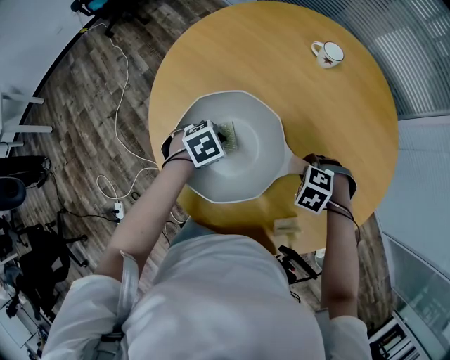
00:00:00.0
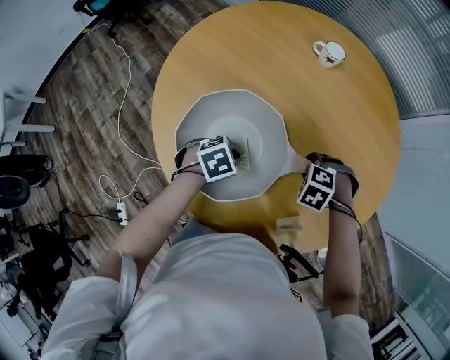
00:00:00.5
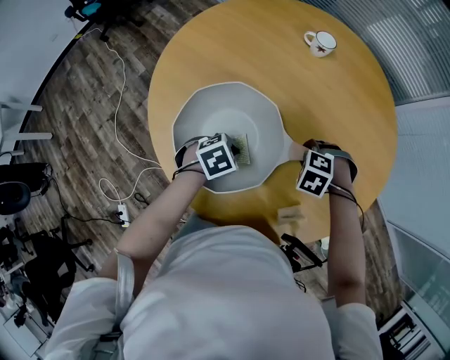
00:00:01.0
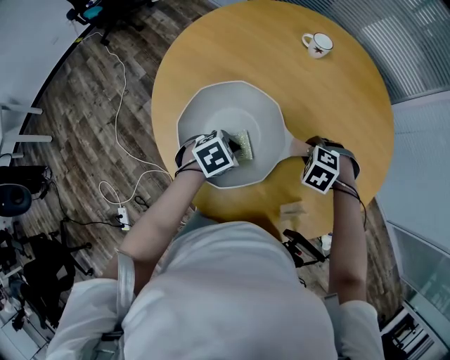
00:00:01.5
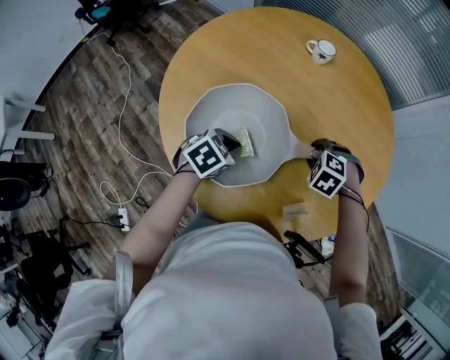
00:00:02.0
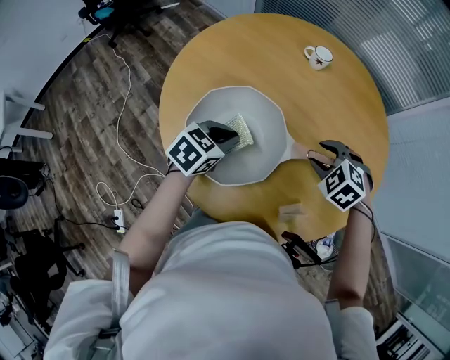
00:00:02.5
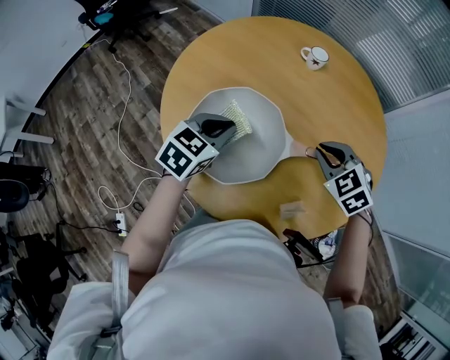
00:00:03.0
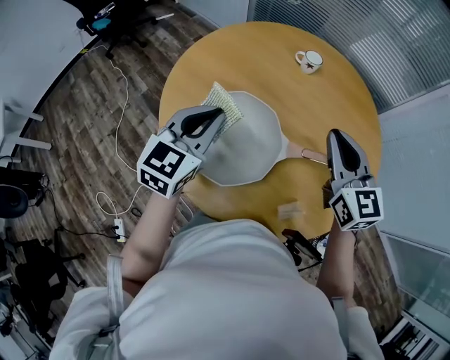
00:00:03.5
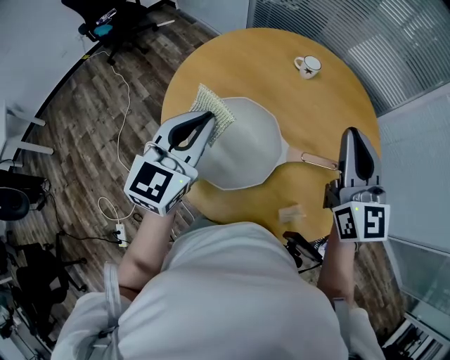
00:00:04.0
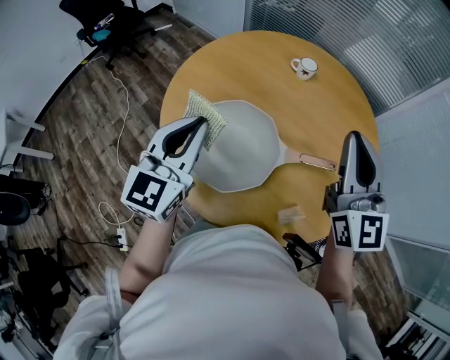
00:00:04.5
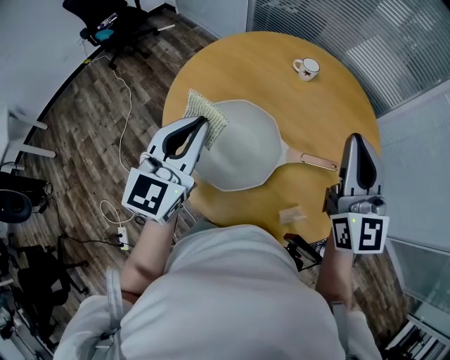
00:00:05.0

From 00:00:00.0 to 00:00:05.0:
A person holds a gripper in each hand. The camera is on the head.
From 00:00:00.0 to 00:00:02.5: Both grippers move upward, roughly 10 cm. The right gripper swivels approximately 20 degrees, and opens its fingers; the left gripper changes its angle by some 30 degrees.
From 00:00:02.5 to 00:00:05.0: The grippers both shift upward by about 25 cm. The left gripper tilts its fingers some 40 degrees upward. Meanwhile the right gripper points its fingers approximately 70 degrees further upward, and closes its fingers.

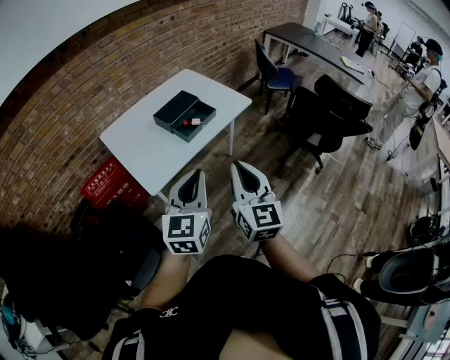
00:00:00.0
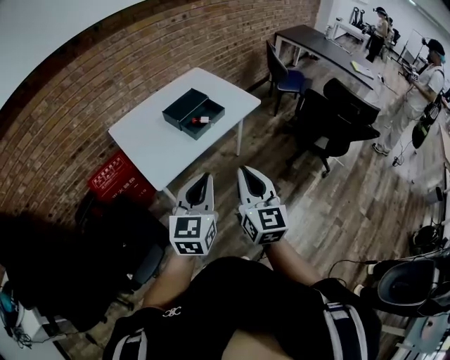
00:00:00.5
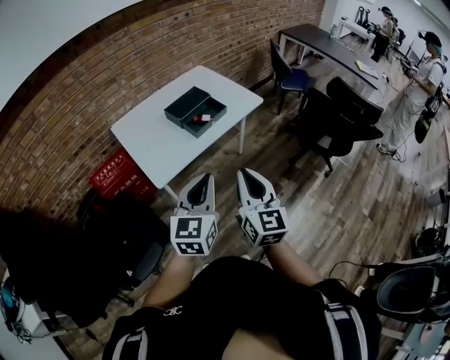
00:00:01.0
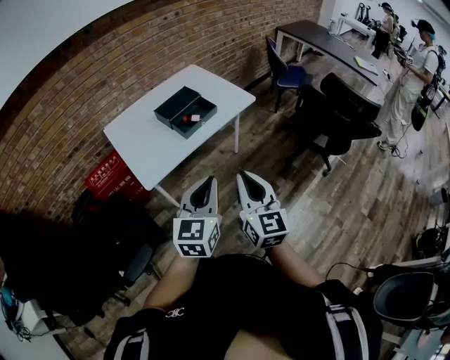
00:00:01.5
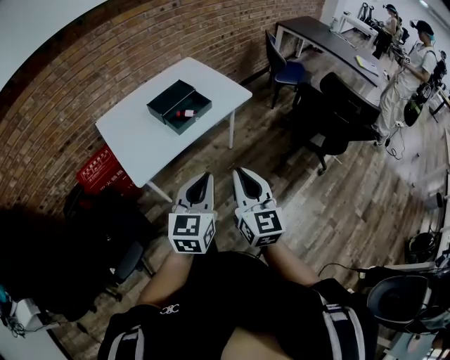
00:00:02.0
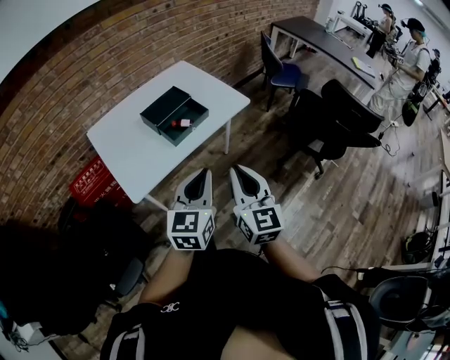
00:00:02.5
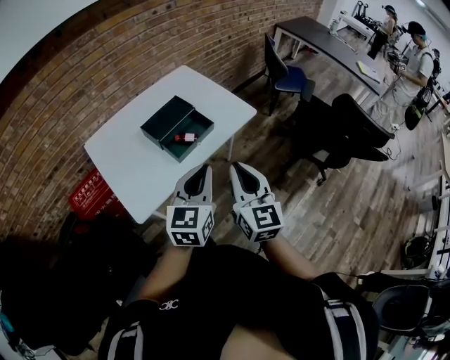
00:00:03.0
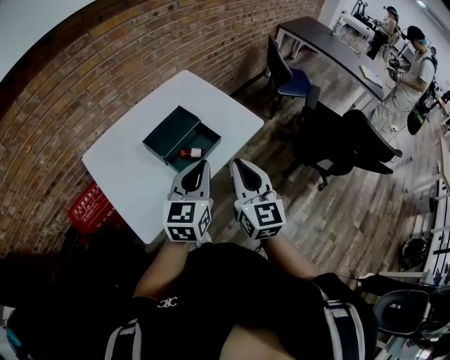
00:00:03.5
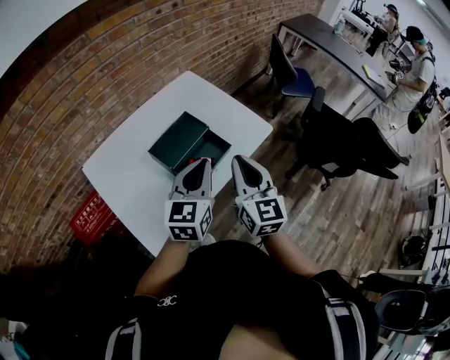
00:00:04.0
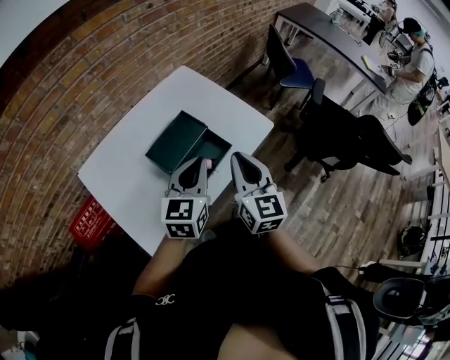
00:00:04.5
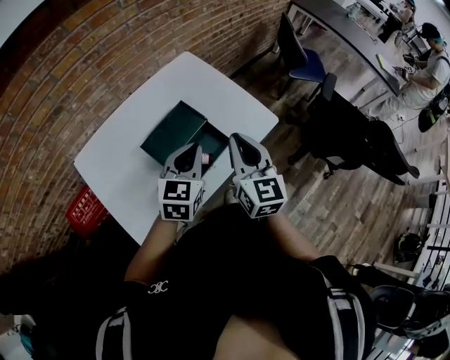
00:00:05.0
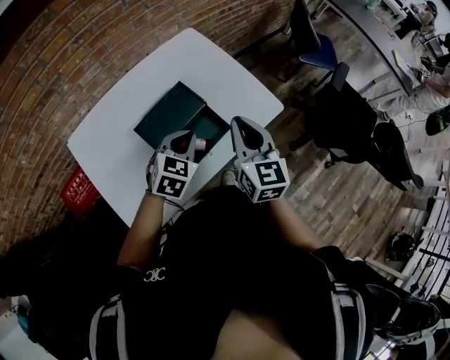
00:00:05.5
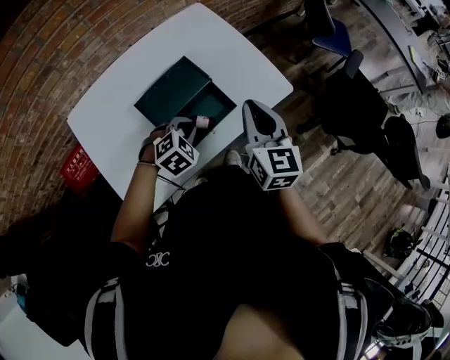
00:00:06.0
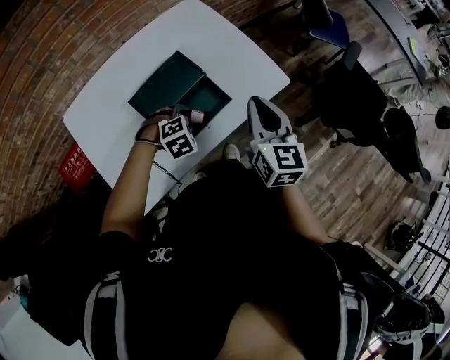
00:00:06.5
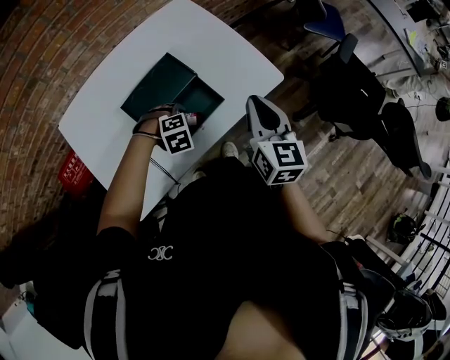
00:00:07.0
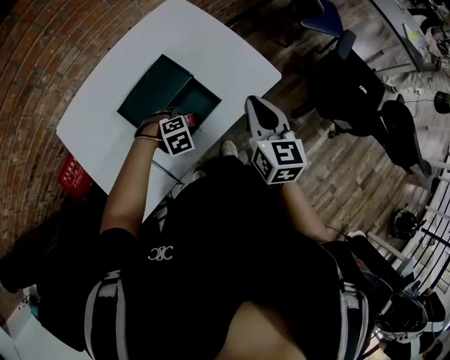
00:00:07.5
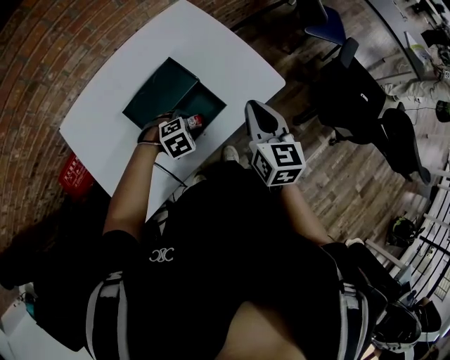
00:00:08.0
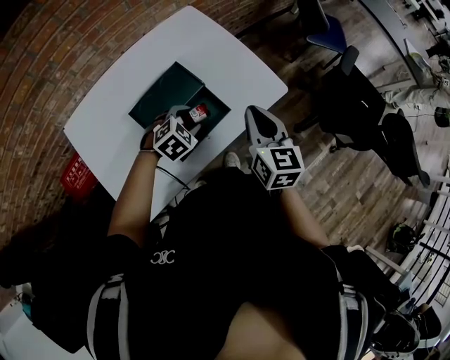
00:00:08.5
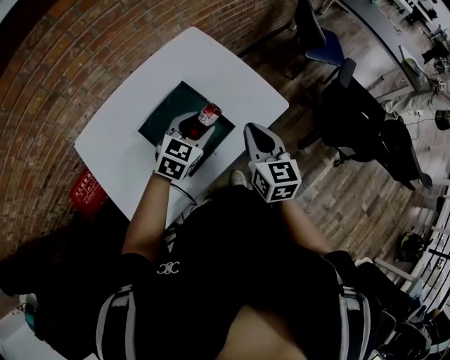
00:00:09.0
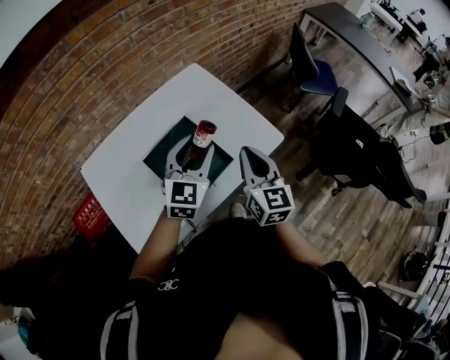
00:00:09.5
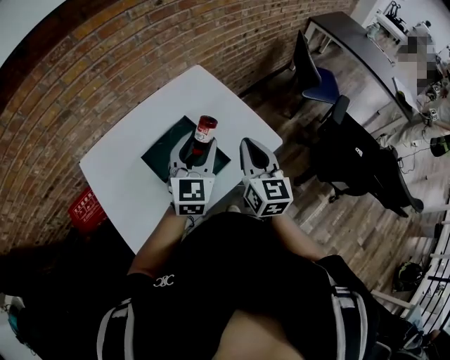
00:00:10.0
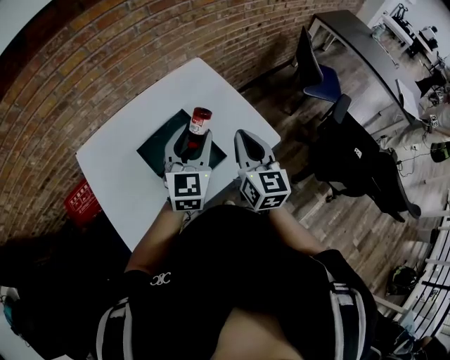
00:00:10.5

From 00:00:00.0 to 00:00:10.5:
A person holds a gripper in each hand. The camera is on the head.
From 00:00:00.0 to 00:00:02.0: The two grippers go some 10 cm to the right and downward.
From 00:00:02.0 to 00:00:04.0: Both grippers move forward, roughly 35 cm.
From 00:00:04.0 to 00:00:06.5: The right gripper goes some 15 cm forward, downward and to the right. The left gripper goes some 25 cm downward, points its fingers some 60 degrees further downward, and opens.
From 00:00:06.5 to 00:00:08.5: The left gripper moves about 5 cm downward and comes back, and swivels approximately 20 degrees.
From 00:00:08.5 to 00:00:10.5: The left gripper travels upward by about 20 cm, and points its fingers some 50 degrees further upward. Meanwhile the right gripper moves upward, roughly 5 cm.

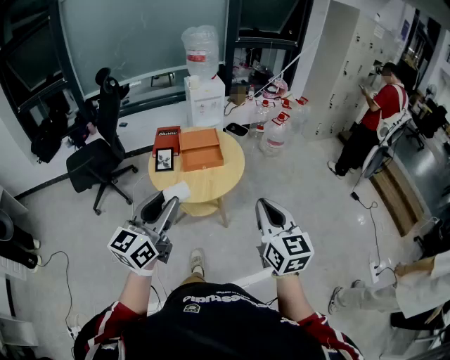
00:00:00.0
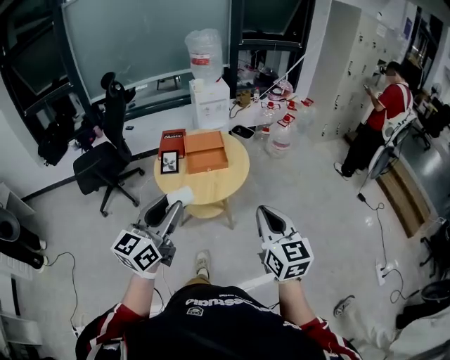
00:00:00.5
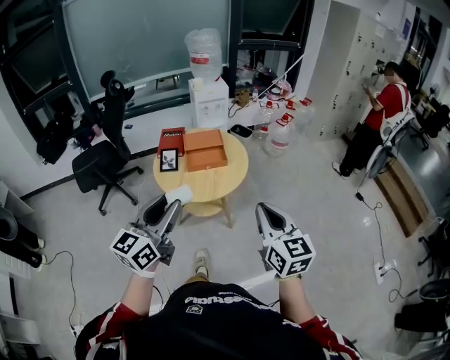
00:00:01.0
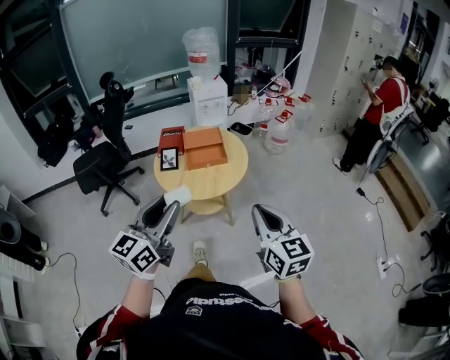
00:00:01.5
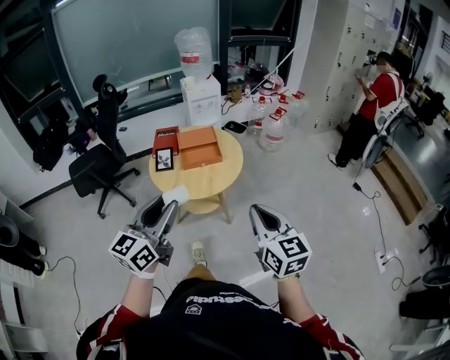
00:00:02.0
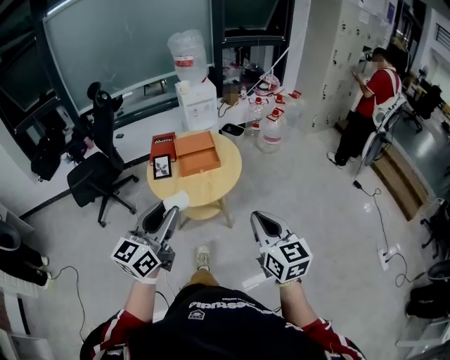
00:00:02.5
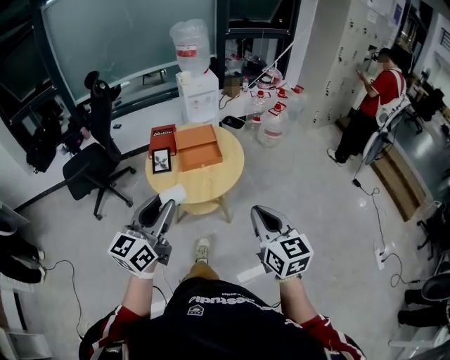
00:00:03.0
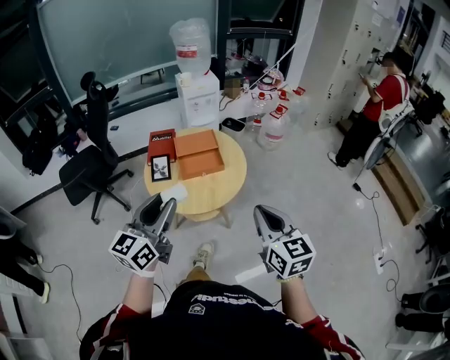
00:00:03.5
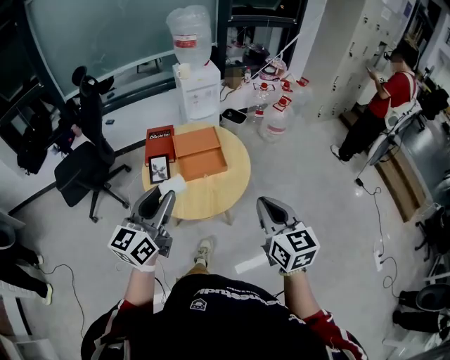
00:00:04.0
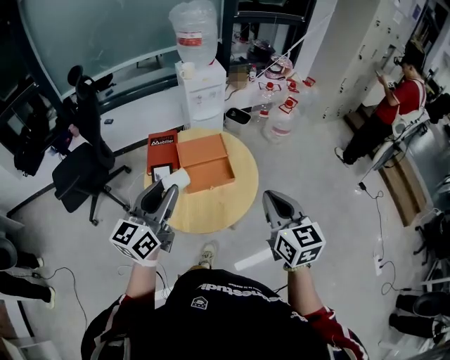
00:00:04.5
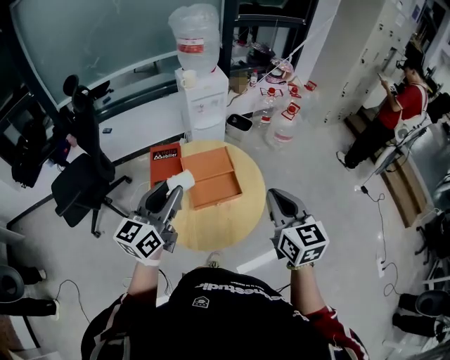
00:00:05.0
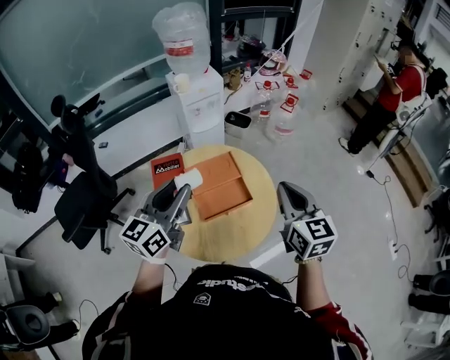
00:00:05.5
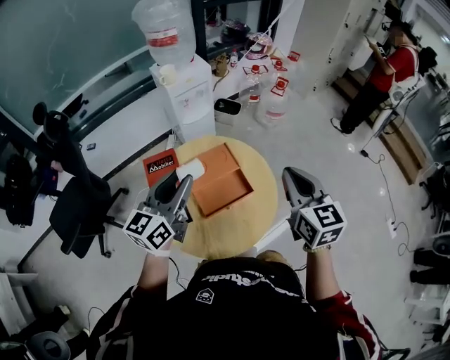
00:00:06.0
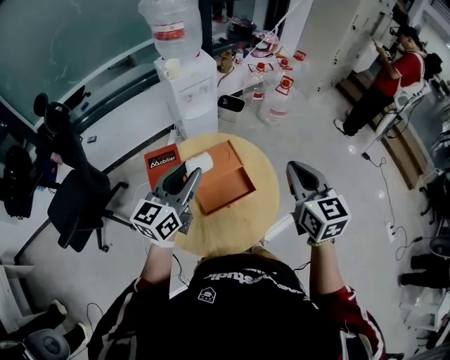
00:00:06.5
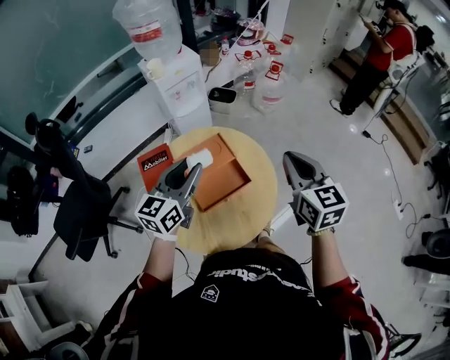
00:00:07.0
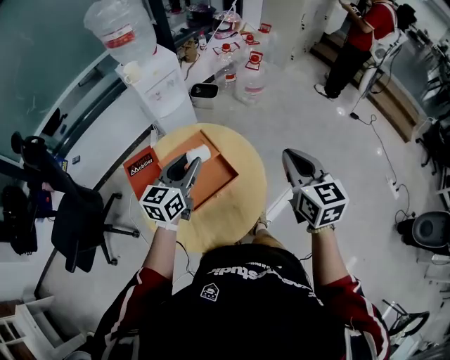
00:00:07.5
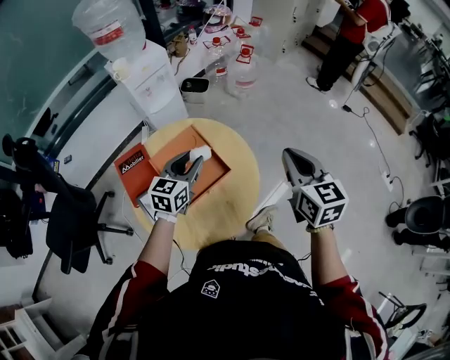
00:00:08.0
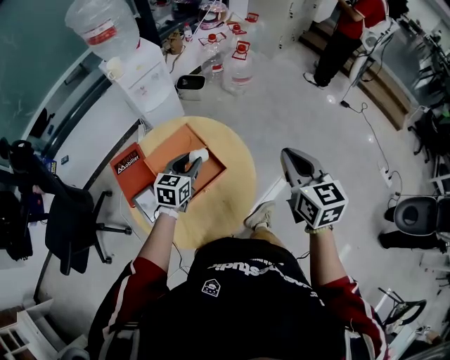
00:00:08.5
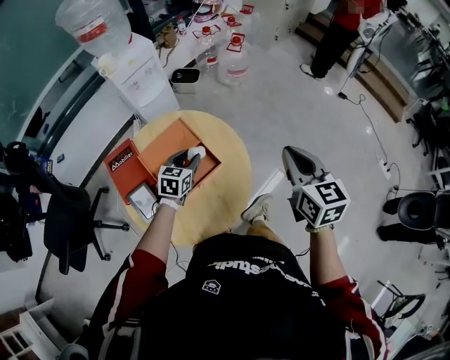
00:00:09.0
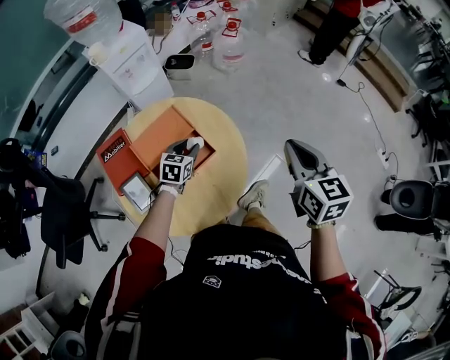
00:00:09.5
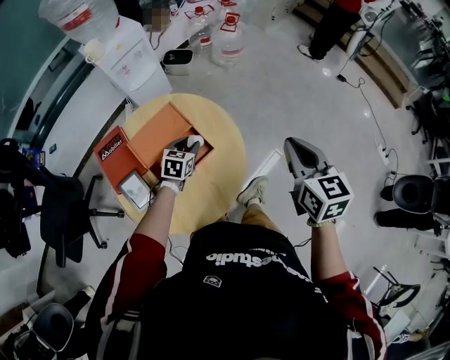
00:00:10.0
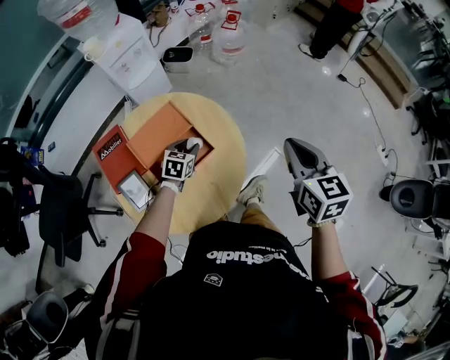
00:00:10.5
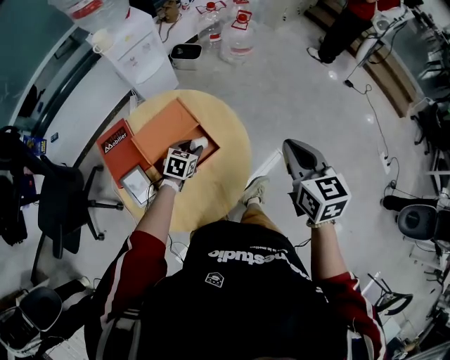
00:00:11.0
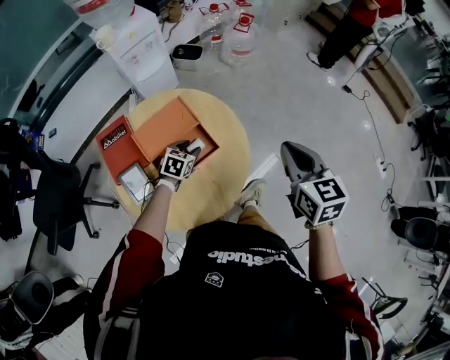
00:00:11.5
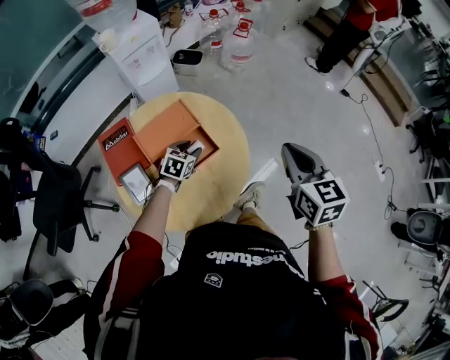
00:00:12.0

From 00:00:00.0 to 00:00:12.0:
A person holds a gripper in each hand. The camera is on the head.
From 00:00:00.0 to 00:00:02.0: There are only small adjustments of the grippers.
From 00:00:02.0 to 00:00:04.0: Both grippers move forward, about 20 cm.
From 00:00:04.0 to 00:00:06.0: The two grippers go some 30 cm forward.
From 00:00:06.0 to 00:00:08.0: The right gripper moves to the right and downward, approximately 10 cm, while the left gripper heads downward, to the right and forward, covering about 20 cm, and rotates roughly 30 degrees.
From 00:00:08.0 to 00:00:10.0: The left gripper shifts about 20 cm downward, and swivels about 20 degrees; the right gripper moves to the right, roughly 5 cm.
From 00:00:10.0 to 00:00:12.0: The grippers stay close to where they were, moving slightly.
